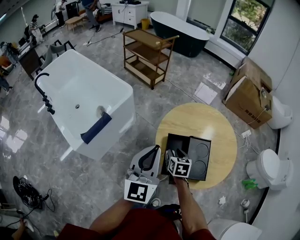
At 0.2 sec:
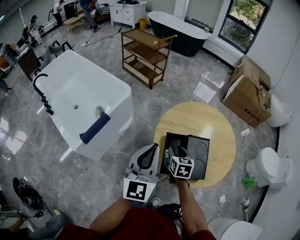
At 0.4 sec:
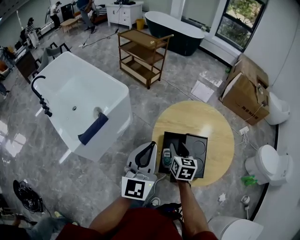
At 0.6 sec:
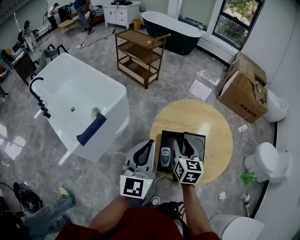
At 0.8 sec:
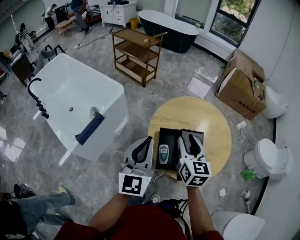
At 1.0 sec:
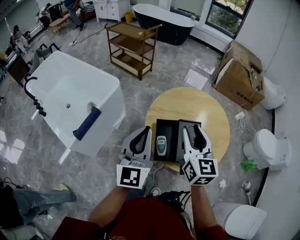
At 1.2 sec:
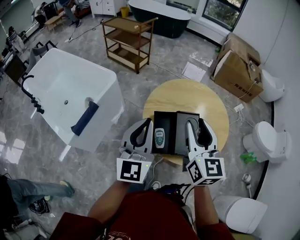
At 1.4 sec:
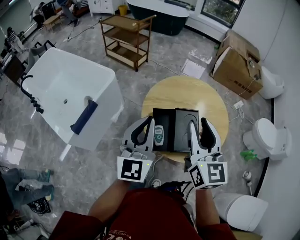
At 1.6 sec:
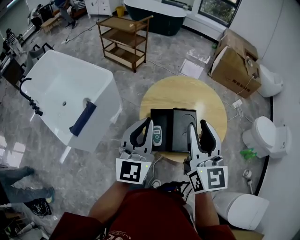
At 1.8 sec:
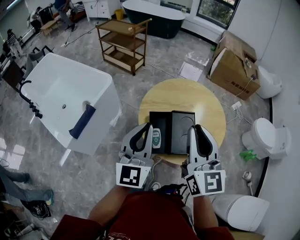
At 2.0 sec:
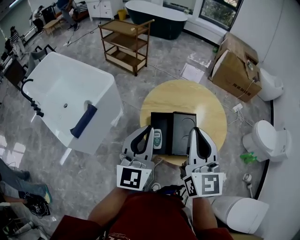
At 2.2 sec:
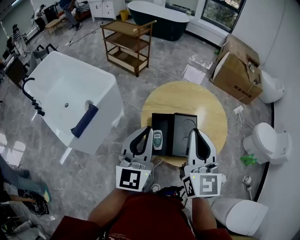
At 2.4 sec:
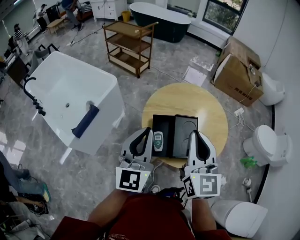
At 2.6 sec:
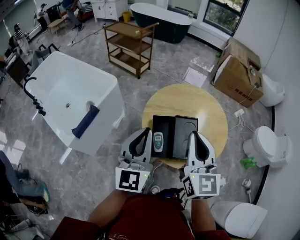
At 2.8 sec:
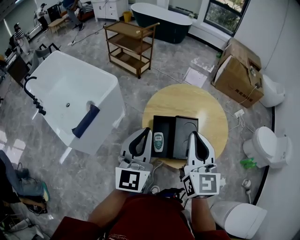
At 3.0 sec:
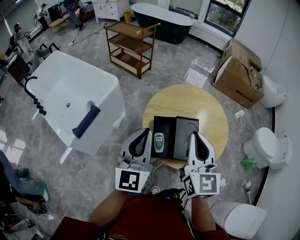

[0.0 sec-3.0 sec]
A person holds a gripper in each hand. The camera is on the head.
0.0 sec to 1.6 sec: The left gripper moves to the right, roughly 5 cm. The right gripper heads upward, covering some 30 cm, and points its fingers some 40 degrees further upward.
1.6 sec to 3.0 sec: The right gripper closes up.

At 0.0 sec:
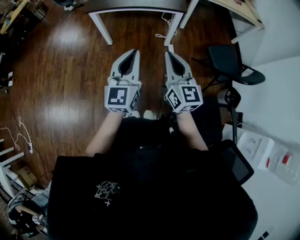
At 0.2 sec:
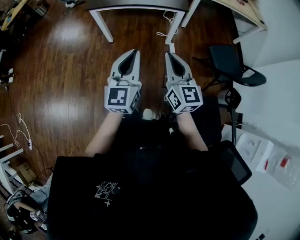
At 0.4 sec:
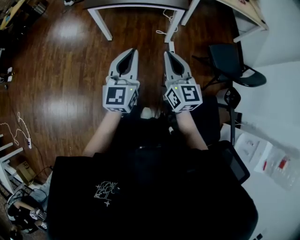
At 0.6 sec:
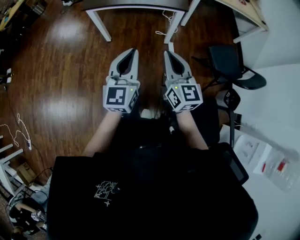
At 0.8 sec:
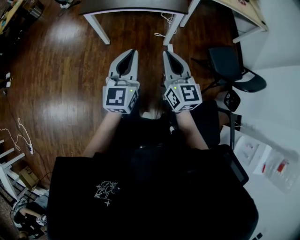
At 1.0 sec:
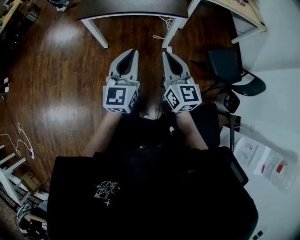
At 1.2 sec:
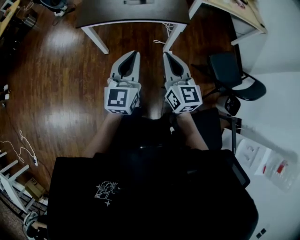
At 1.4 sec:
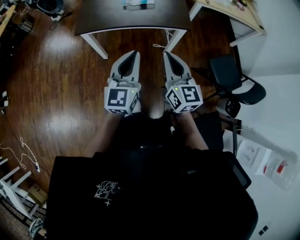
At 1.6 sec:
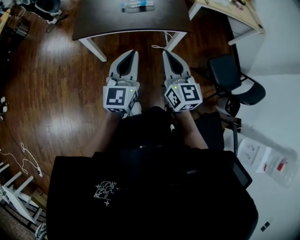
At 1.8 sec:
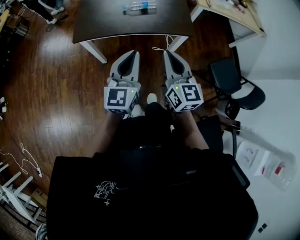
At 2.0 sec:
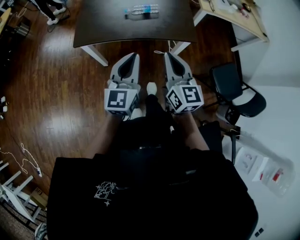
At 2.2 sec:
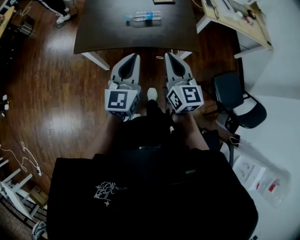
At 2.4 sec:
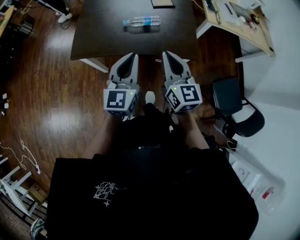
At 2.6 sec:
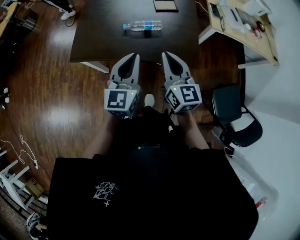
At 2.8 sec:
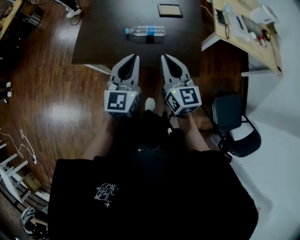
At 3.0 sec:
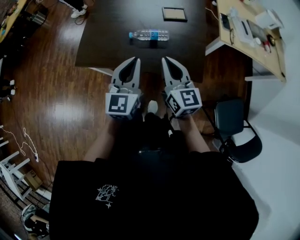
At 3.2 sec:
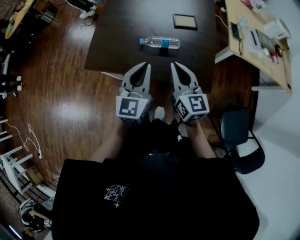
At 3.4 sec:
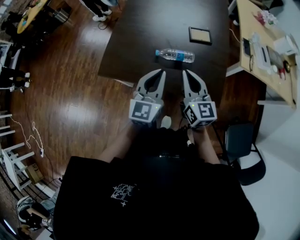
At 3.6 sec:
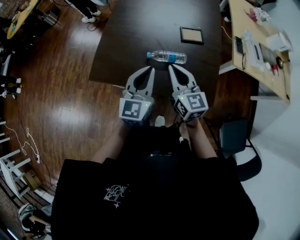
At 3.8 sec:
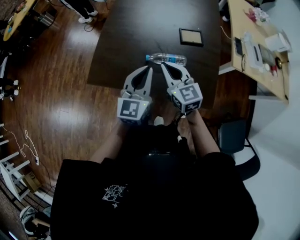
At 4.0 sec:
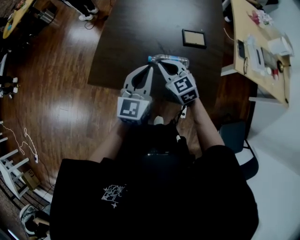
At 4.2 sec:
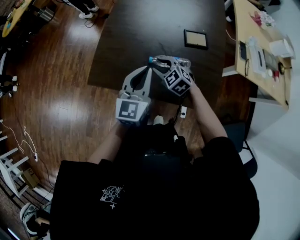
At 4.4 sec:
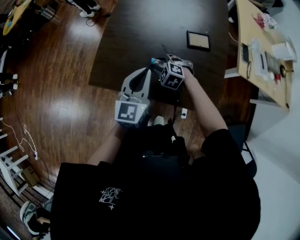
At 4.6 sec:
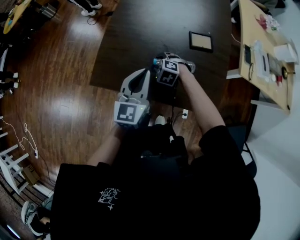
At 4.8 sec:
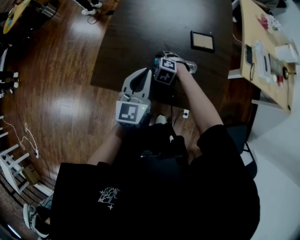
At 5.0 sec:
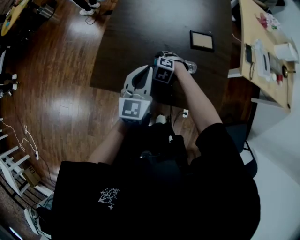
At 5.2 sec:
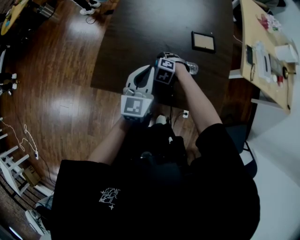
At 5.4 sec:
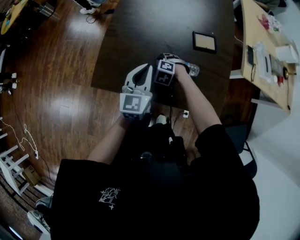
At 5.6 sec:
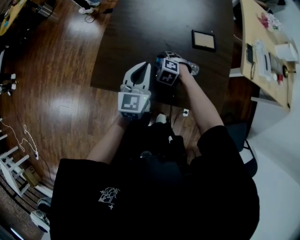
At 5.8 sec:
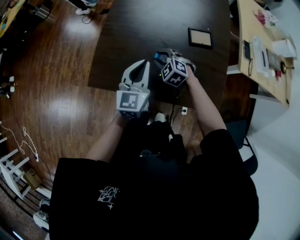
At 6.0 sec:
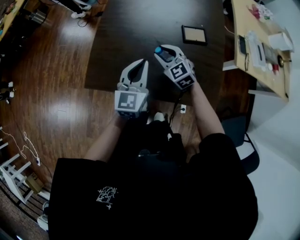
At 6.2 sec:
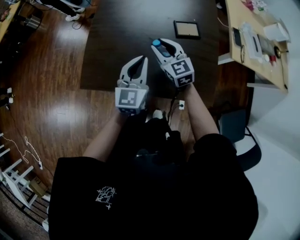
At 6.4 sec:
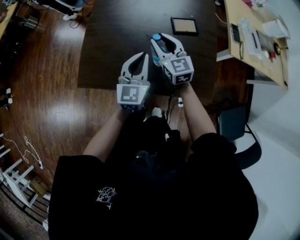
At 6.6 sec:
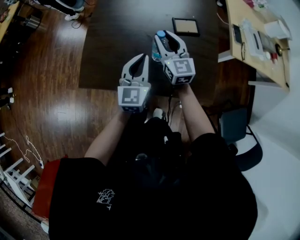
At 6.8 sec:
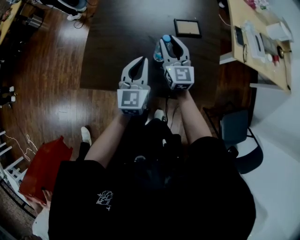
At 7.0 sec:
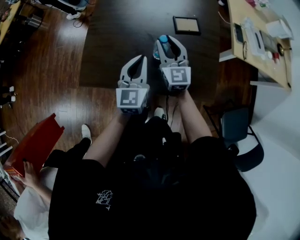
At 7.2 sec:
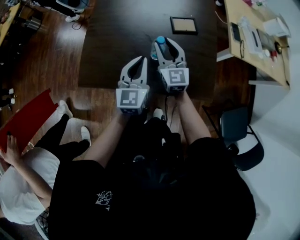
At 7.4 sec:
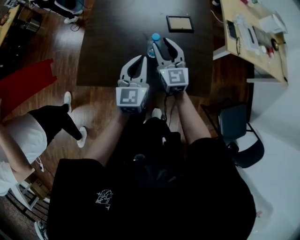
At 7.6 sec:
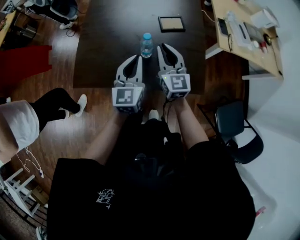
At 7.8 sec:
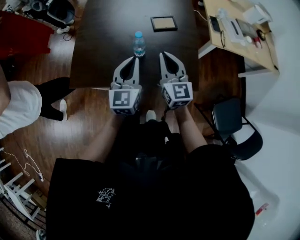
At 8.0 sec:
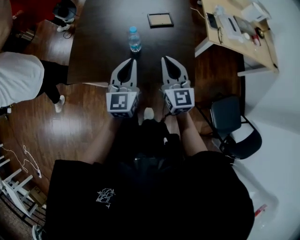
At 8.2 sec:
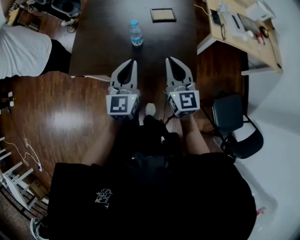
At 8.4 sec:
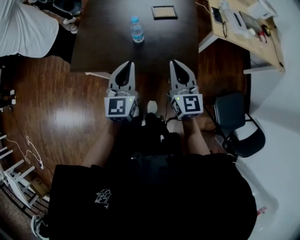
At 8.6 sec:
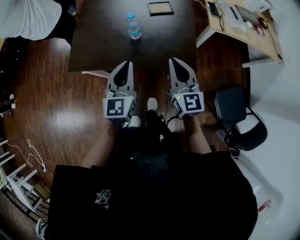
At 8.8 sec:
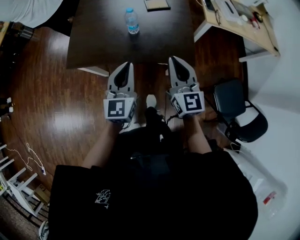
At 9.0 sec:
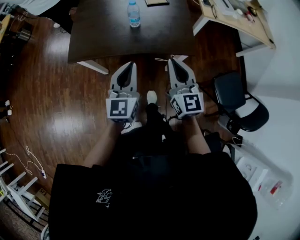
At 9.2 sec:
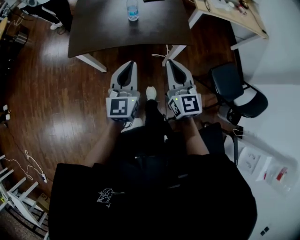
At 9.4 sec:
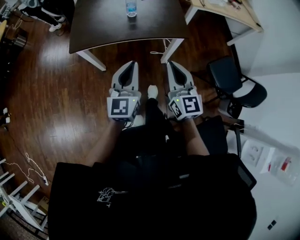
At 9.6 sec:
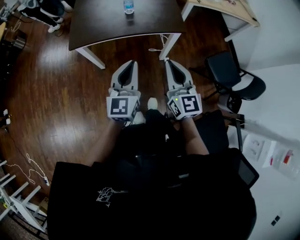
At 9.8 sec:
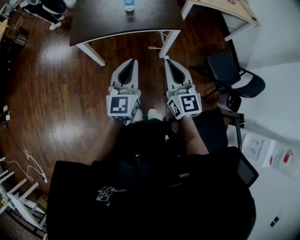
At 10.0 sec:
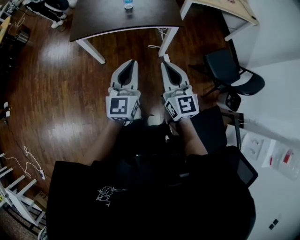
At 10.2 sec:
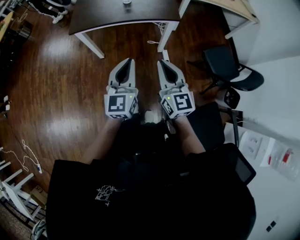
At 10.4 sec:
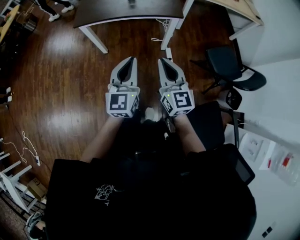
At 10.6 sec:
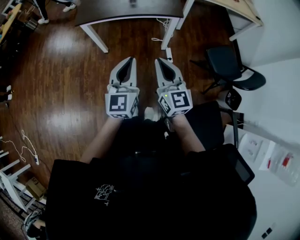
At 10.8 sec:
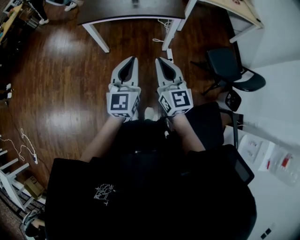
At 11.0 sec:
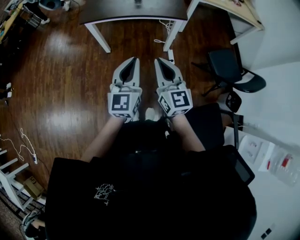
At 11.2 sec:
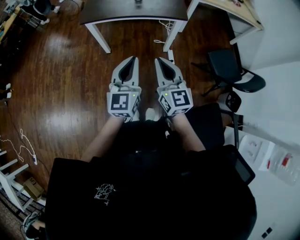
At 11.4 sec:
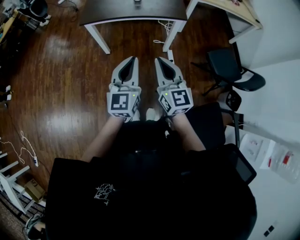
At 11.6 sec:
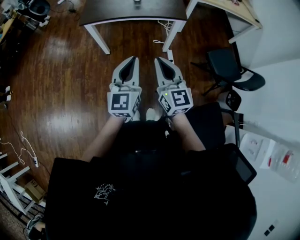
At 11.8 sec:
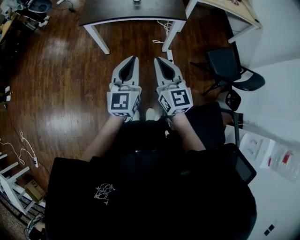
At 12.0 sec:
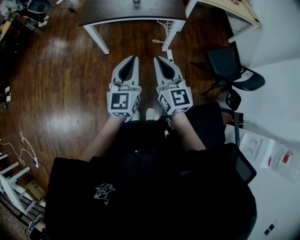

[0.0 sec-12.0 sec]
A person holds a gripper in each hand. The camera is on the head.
0.0 sec to 1.6 sec: Both grippers travel together forward, some 25 cm.
1.6 sec to 3.0 sec: Both grippers move forward, about 30 cm.
3.0 sec to 4.4 sec: The right gripper is displaced downward, forward and to the left by roughly 30 cm, tilts its fingers about 50 degrees downward, and opens its fingers; the left gripper shifts about 15 cm forward and to the left.
4.4 sec to 6.0 sec: The right gripper is displaced upward by some 10 cm, and rotates approximately 40 degrees.
6.0 sec to 7.6 sec: The right gripper travels to the right, upward and backward by approximately 15 cm, turns by roughly 40 degrees, and closes; the left gripper heads to the right, covering approximately 5 cm.
7.6 sec to 9.0 sec: Both grippers travel together backward, about 25 cm.
9.0 sec to 10.4 sec: Both grippers move backward, roughly 30 cm.
10.4 sec to 12.0 sec: The right gripper travels to the left by roughly 5 cm.

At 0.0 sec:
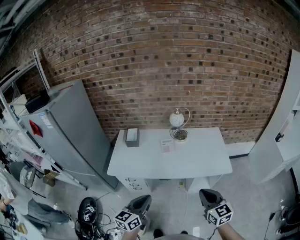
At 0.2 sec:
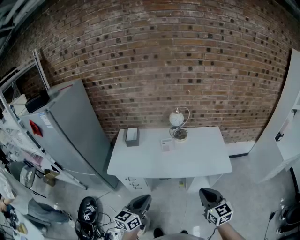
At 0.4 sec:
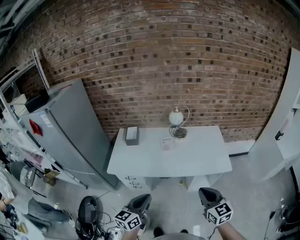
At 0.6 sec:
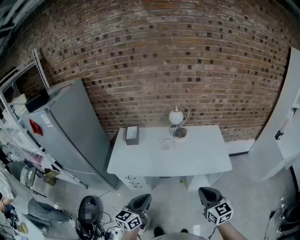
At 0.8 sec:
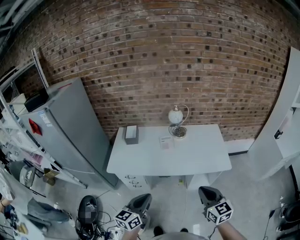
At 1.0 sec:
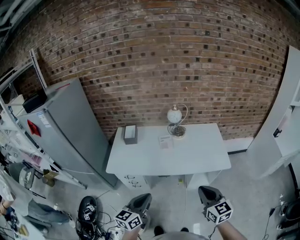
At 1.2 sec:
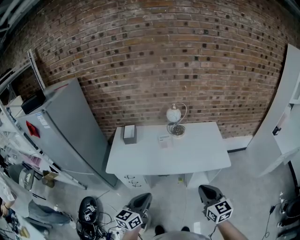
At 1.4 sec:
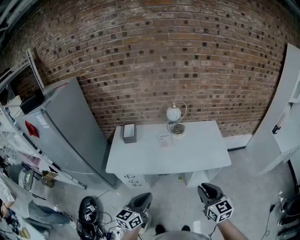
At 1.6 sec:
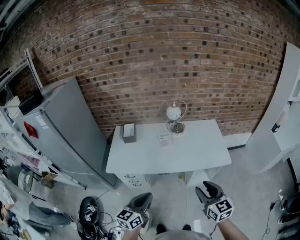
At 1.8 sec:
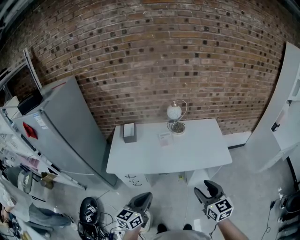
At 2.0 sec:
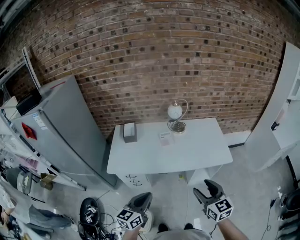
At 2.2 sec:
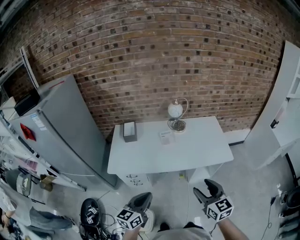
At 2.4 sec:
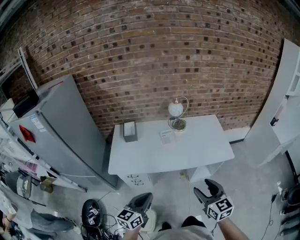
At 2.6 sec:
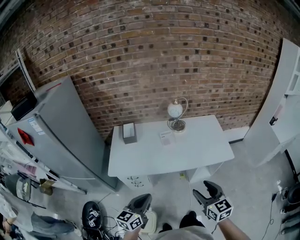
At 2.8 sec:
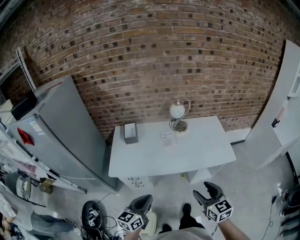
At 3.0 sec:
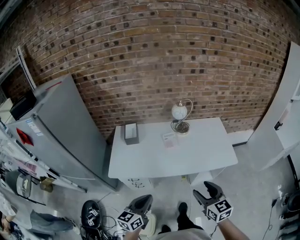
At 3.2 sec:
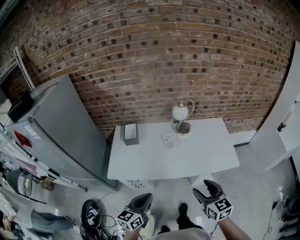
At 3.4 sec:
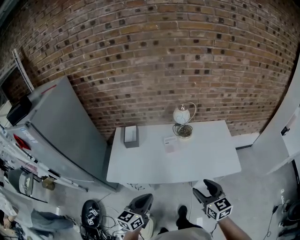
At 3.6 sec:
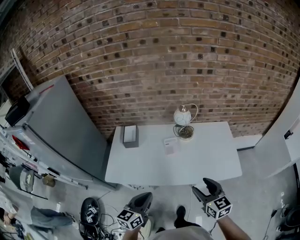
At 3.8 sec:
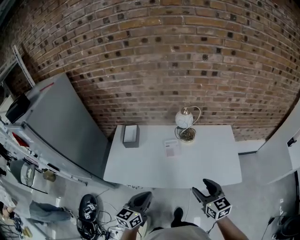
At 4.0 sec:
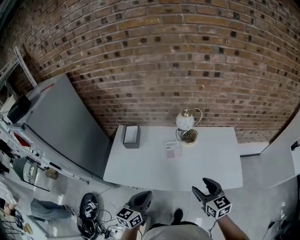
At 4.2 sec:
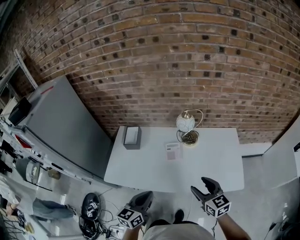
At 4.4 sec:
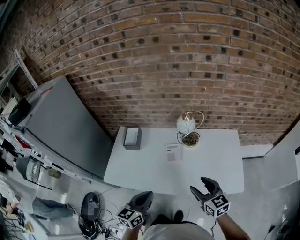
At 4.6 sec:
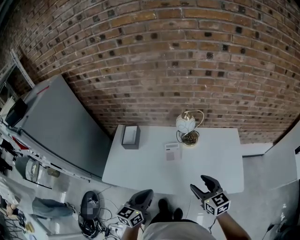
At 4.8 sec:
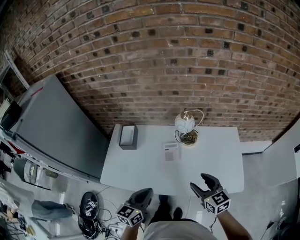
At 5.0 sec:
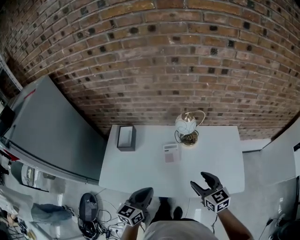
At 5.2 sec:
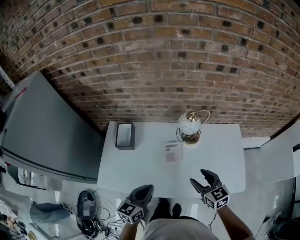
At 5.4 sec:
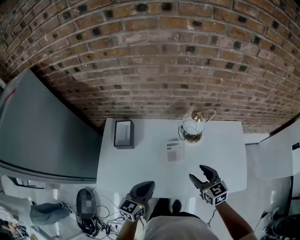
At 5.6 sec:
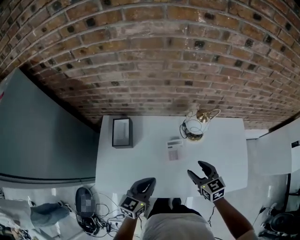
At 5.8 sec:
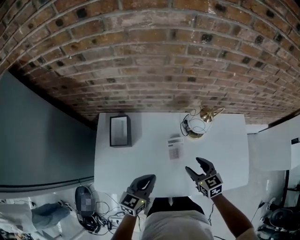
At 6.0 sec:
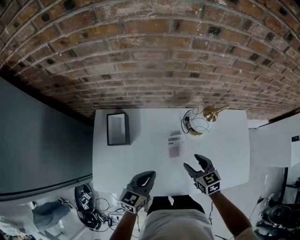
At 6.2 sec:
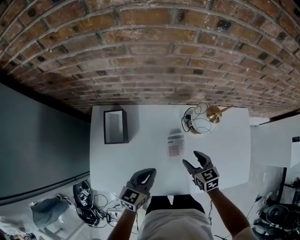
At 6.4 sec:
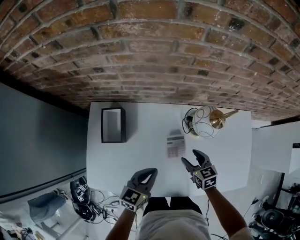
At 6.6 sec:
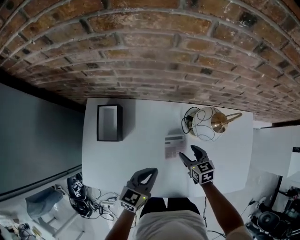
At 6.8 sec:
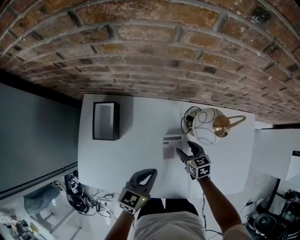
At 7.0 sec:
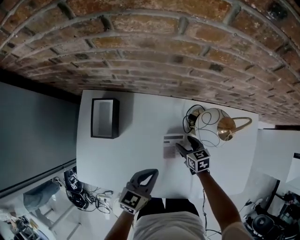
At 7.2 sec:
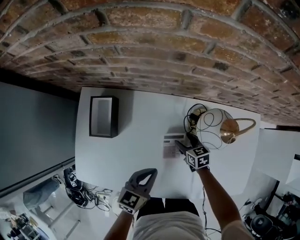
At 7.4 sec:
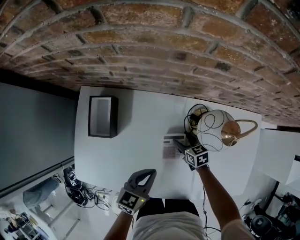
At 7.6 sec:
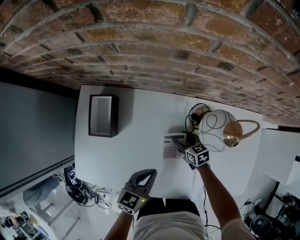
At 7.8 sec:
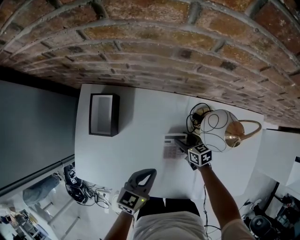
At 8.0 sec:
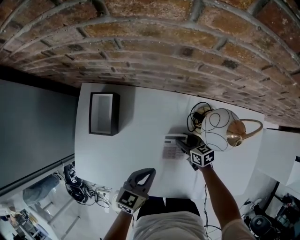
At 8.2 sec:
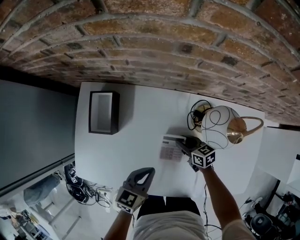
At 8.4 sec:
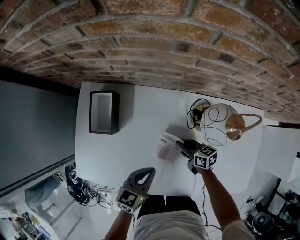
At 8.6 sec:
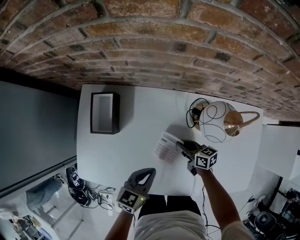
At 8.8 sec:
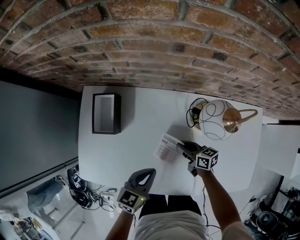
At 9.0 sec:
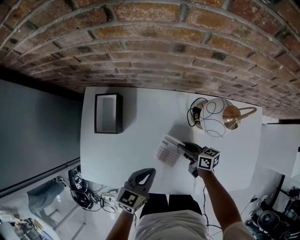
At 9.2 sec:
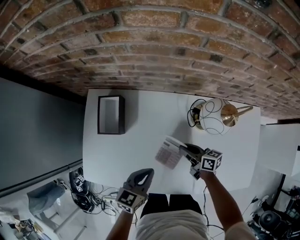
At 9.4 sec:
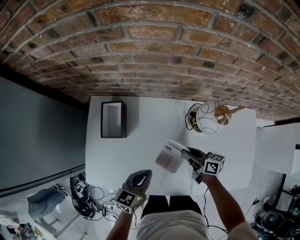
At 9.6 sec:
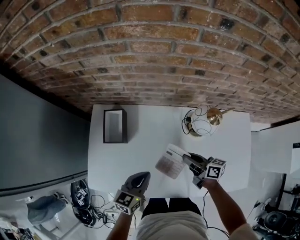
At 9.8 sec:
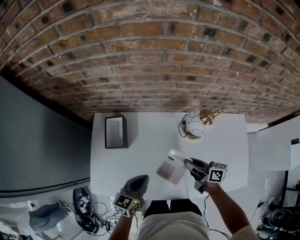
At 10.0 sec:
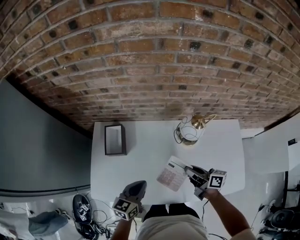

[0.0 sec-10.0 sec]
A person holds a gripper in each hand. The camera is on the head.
0.0 sec to 1.4 sec: The grippers stay close to where they were, moving slightly.
1.4 sec to 2.8 sec: The two grippers go approximately 10 cm to the left. The right gripper opens its fingers.
2.8 sec to 4.2 sec: The left gripper is displaced forward and to the right by roughly 25 cm, while the right gripper heads forward, covering about 25 cm.
4.2 sec to 5.8 sec: Both grippers move forward and downward, roughly 30 cm.
5.8 sec to 7.2 sec: The left gripper is displaced downward, forward and to the right by about 15 cm, while the right gripper shifts some 30 cm downward and forward.
7.2 sec to 8.6 sec: The right gripper ends up approximately 5 cm from where it was, rotates roughly 30 degrees, and closes up.
8.6 sec to 10.0 sec: The left gripper travels upward and to the left by about 10 cm. Meanwhile the right gripper shifts roughly 25 cm upward, and turns by roughly 20 degrees.
